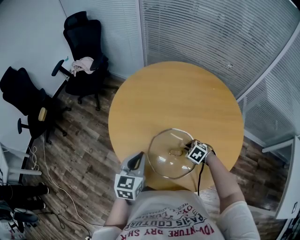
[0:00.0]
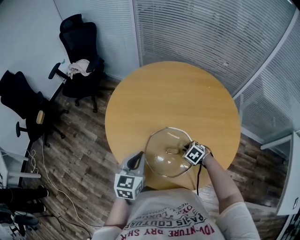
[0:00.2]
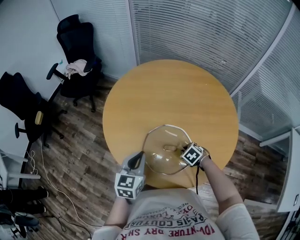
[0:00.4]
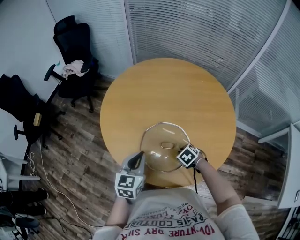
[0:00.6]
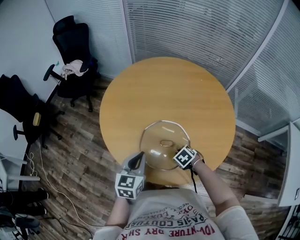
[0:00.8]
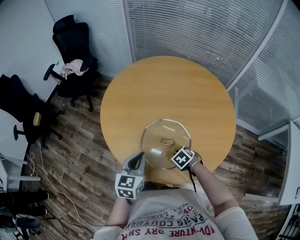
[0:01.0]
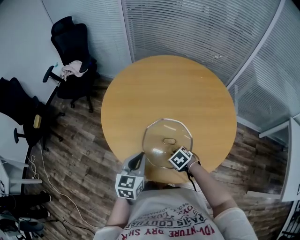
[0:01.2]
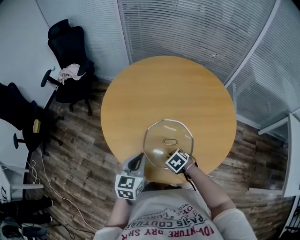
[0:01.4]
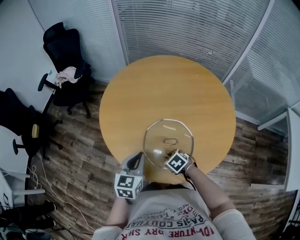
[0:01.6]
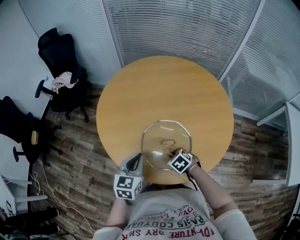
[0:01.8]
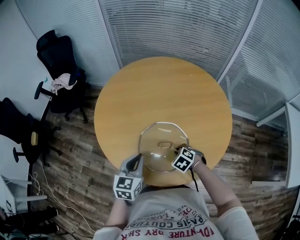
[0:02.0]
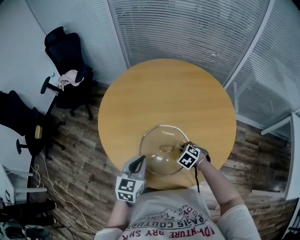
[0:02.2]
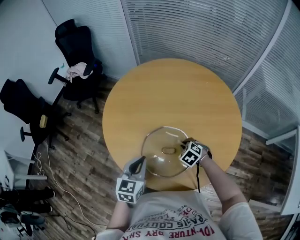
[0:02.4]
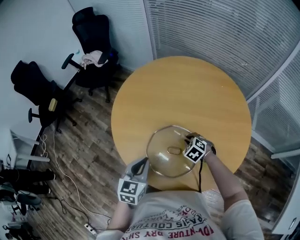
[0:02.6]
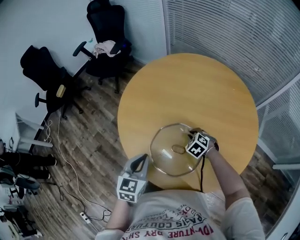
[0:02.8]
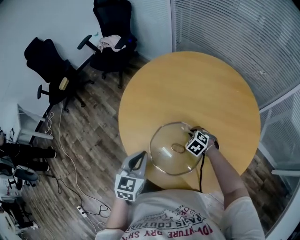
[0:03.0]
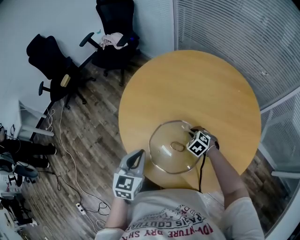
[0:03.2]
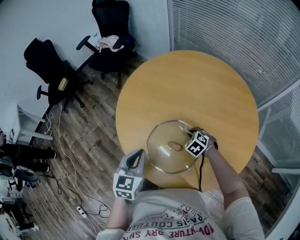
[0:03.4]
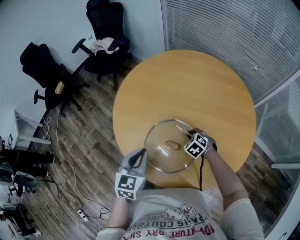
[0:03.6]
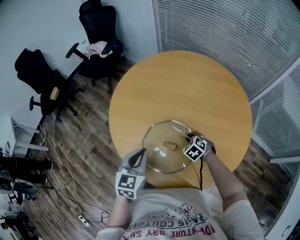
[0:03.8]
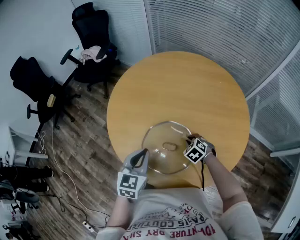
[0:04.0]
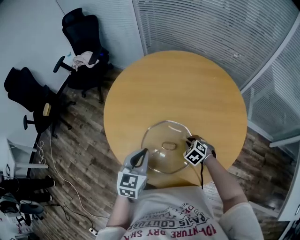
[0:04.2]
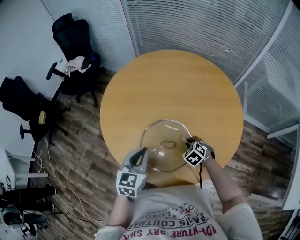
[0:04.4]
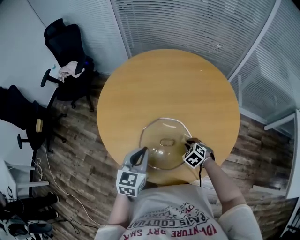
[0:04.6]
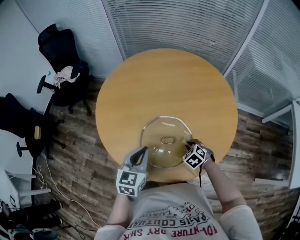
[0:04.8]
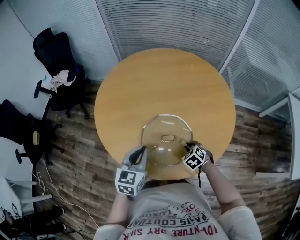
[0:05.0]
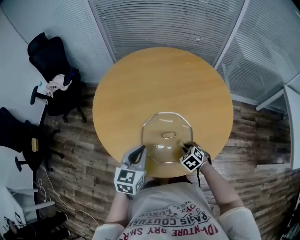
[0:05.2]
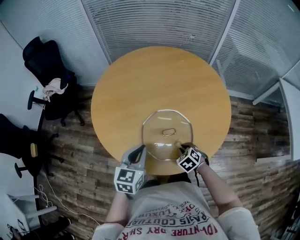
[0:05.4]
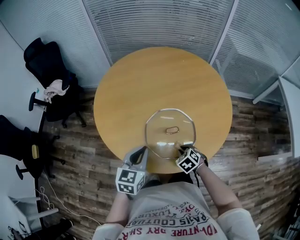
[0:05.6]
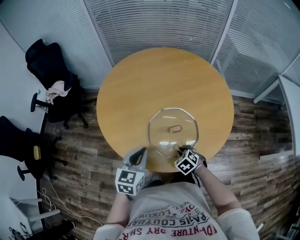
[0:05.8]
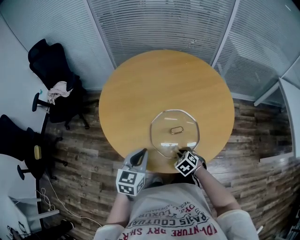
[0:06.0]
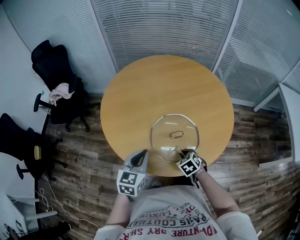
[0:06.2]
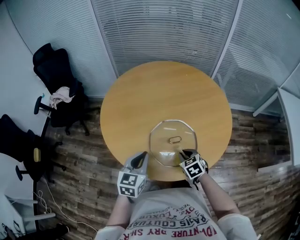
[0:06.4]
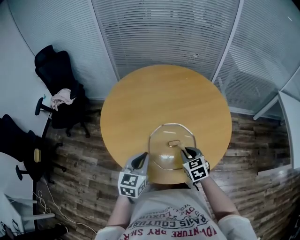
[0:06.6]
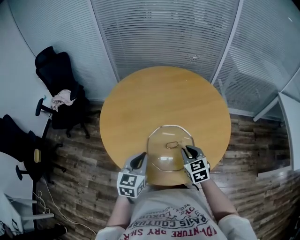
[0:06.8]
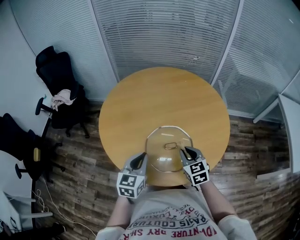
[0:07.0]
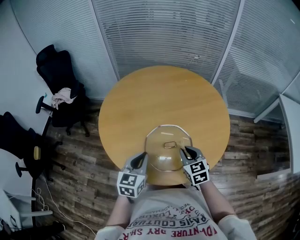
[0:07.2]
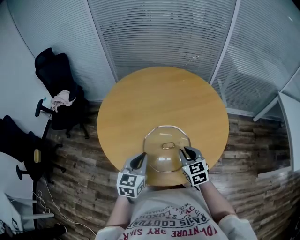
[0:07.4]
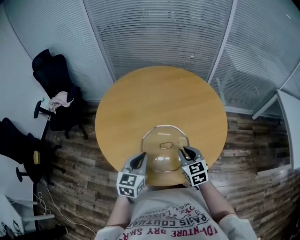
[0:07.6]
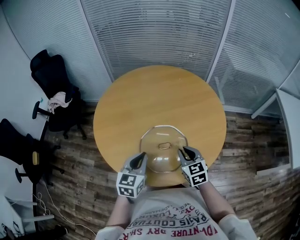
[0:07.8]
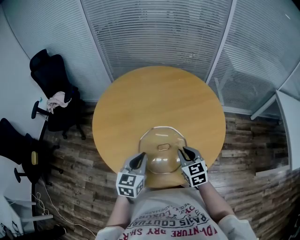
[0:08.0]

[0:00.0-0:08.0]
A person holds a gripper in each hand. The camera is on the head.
0:00.0 to 0:01.6: The right gripper ends up about 15 cm from where it was, and changes its angle by approximately 20 degrees.
0:01.6 to 0:03.2: The right gripper shifts by roughly 20 cm, and turns by about 40 degrees. Meanwhile the left gripper turns by roughly 30 degrees.
0:03.2 to 0:04.8: The left gripper rotates roughly 30 degrees. Meanwhile the right gripper ends up approximately 15 cm from where it was, and rotates approximately 30 degrees.
0:04.8 to 0:06.4: The left gripper shifts about 5 cm to the left. The right gripper heads to the left, upward and backward, covering approximately 15 cm, and rotates approximately 30 degrees.
0:06.4 to 0:08.0: The right gripper shifts about 10 cm upward and to the right, and changes its angle by approximately 20 degrees. Meanwhile the left gripper is displaced to the right by some 5 cm.

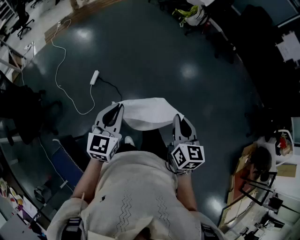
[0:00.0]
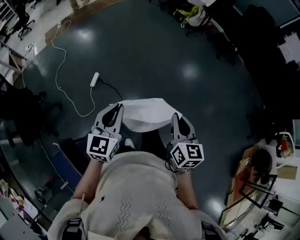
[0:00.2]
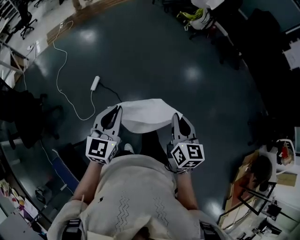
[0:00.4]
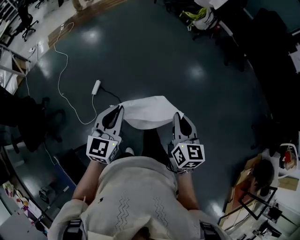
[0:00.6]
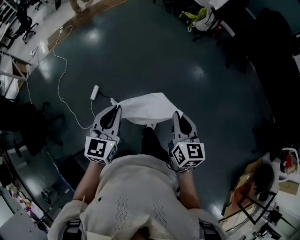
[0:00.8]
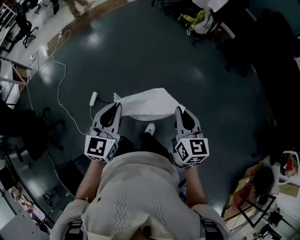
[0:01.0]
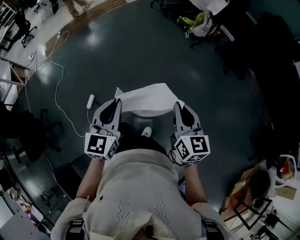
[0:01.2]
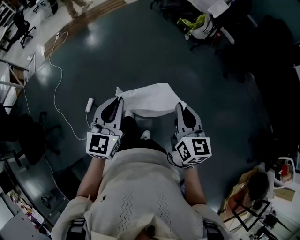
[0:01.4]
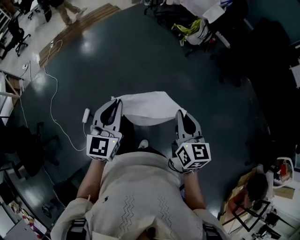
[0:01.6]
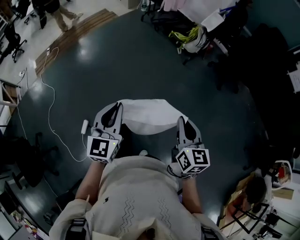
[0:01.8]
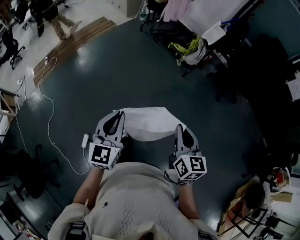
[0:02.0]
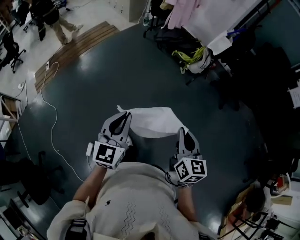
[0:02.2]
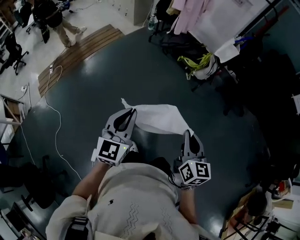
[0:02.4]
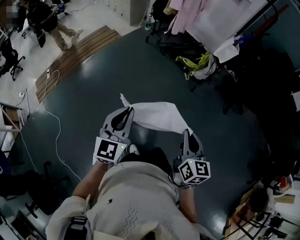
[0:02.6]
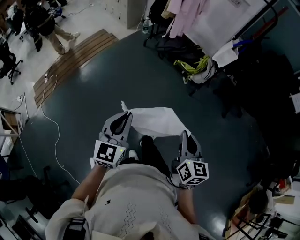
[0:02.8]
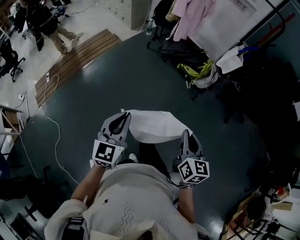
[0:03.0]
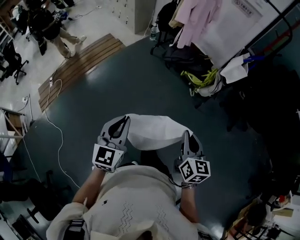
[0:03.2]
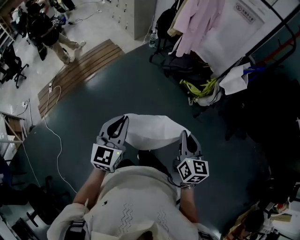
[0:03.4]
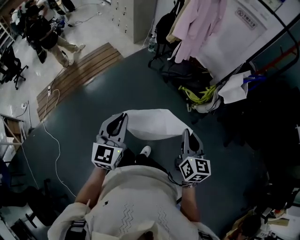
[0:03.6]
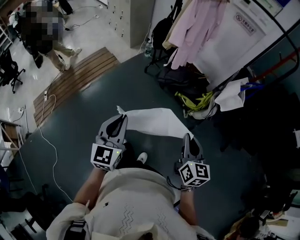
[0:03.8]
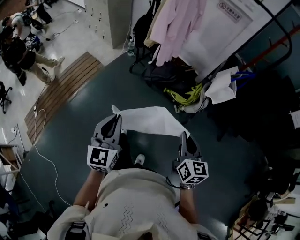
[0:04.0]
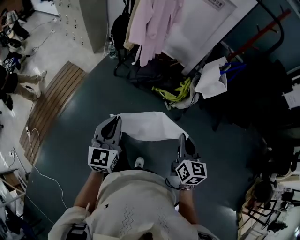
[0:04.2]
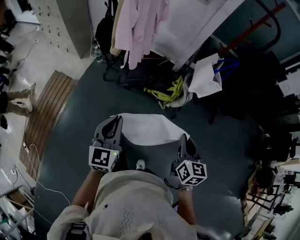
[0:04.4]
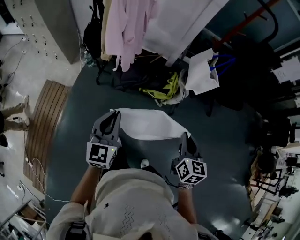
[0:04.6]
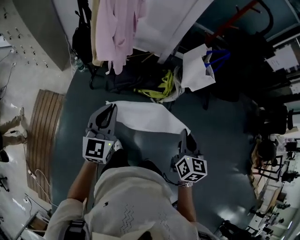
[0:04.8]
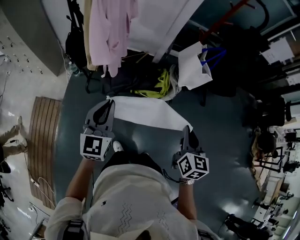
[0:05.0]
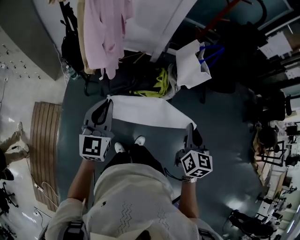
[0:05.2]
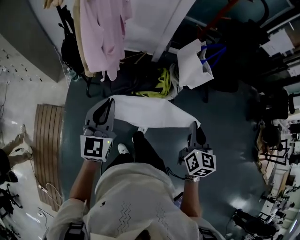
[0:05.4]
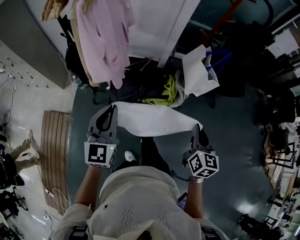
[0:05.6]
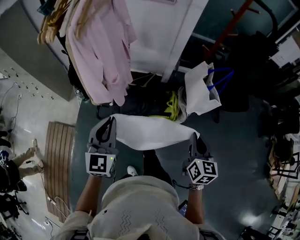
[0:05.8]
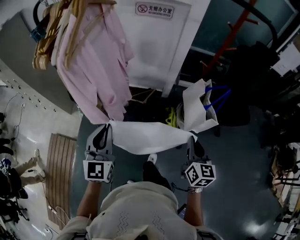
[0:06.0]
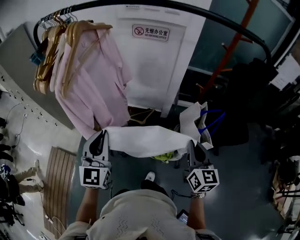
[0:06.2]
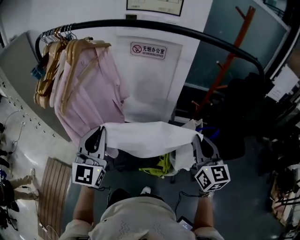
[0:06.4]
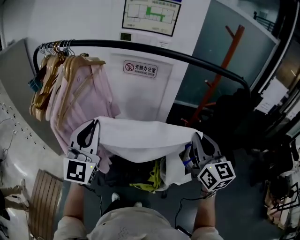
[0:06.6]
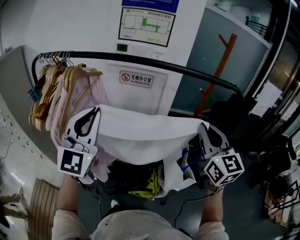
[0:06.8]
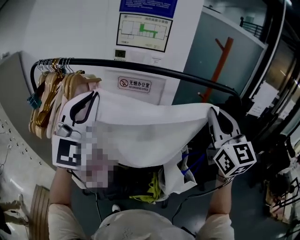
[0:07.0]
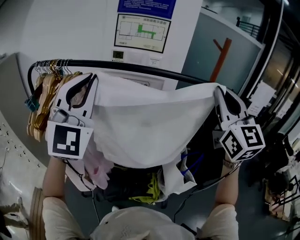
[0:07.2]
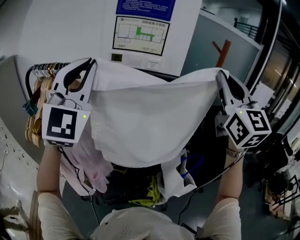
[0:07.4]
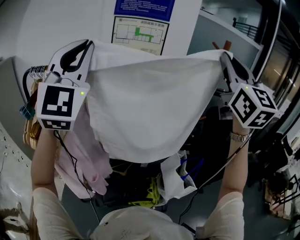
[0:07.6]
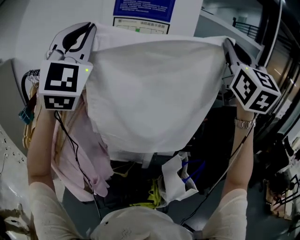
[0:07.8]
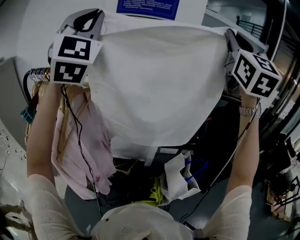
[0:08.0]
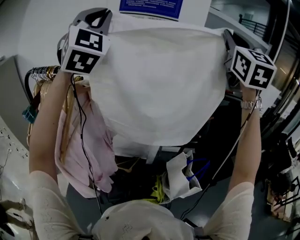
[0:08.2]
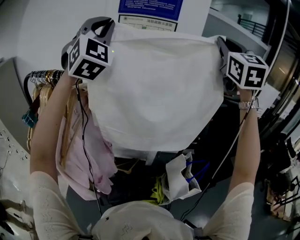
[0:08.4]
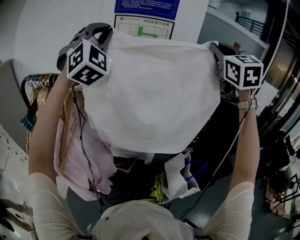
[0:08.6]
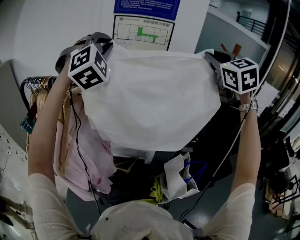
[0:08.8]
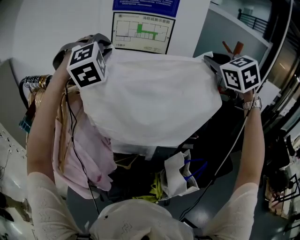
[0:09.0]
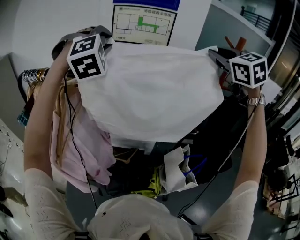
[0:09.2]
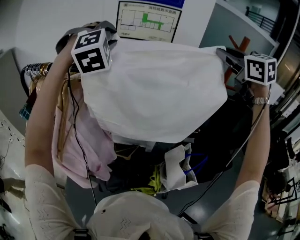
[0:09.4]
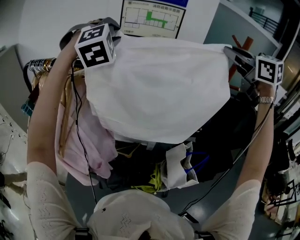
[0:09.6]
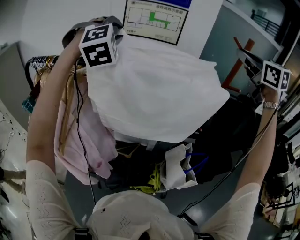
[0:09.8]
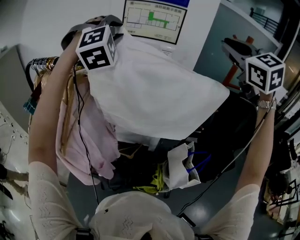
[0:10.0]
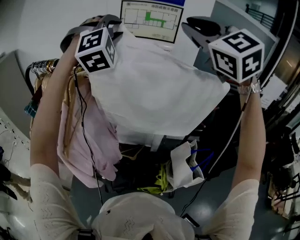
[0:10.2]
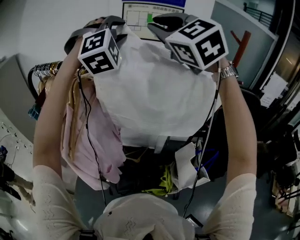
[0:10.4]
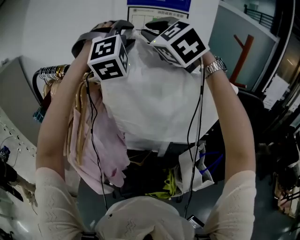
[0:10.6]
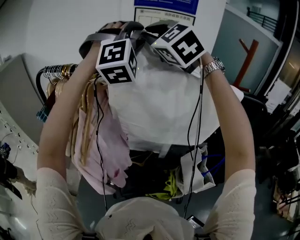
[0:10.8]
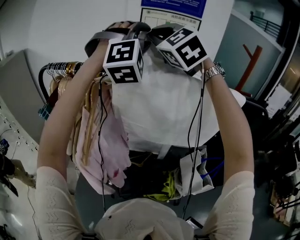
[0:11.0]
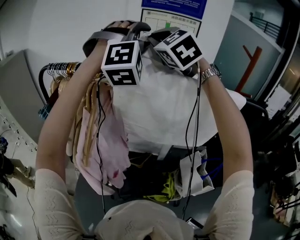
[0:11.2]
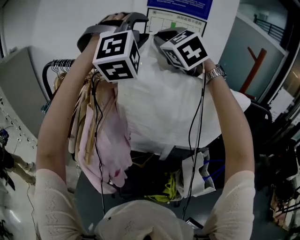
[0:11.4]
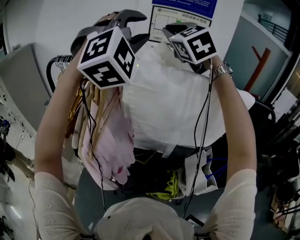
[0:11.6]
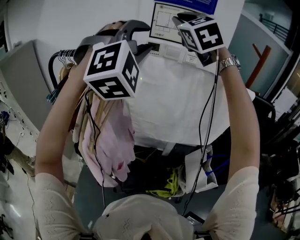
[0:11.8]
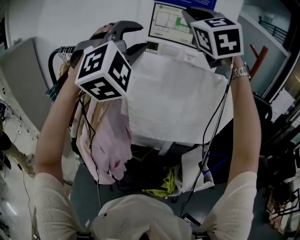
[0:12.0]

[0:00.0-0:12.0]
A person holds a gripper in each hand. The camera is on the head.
0:00.0 to 0:01.6: Both grippers are carried forward, about 60 cm.
0:01.6 to 0:03.0: The pair of grippers is taken forward and to the left, about 50 cm.
0:03.0 to 0:04.4: The pair of grippers is taken roughly 50 cm. The right gripper turns by some 20 degrees.
0:04.4 to 0:06.0: Both grippers travel together forward, some 35 cm.
0:06.0 to 0:07.6: The grippers both shift upward and forward by approximately 60 cm. The left gripper tilts its fingers some 30 degrees upward; the right gripper tilts its fingers approximately 40 degrees upward.
0:07.6 to 0:09.0: Both grippers move forward, approximately 20 cm. The right gripper angles its fingers downward, by approximately 40 degrees, while the left gripper tips its fingers downward by about 40 degrees.
0:09.0 to 0:10.4: The right gripper goes some 25 cm to the left, and turns by about 30 degrees; the left gripper opens.
0:10.4 to 0:12.0: The right gripper reaches approximately 10 cm forward, then returns, while the left gripper shifts roughly 10 cm backward and to the left.

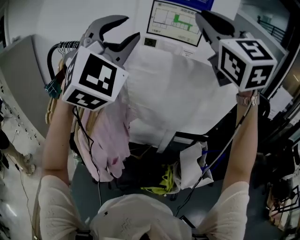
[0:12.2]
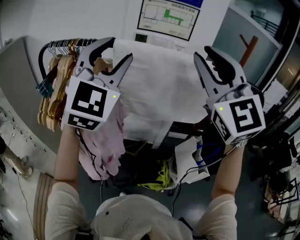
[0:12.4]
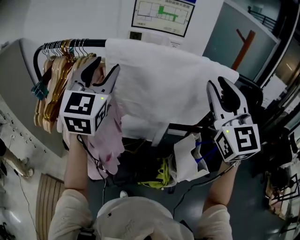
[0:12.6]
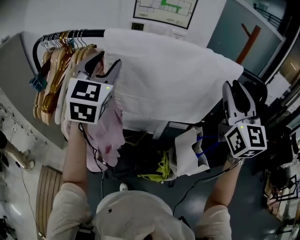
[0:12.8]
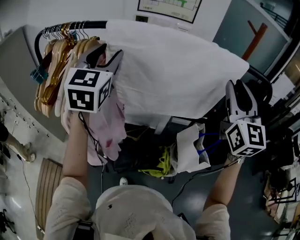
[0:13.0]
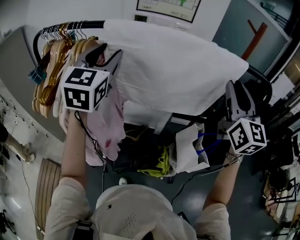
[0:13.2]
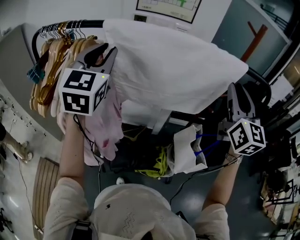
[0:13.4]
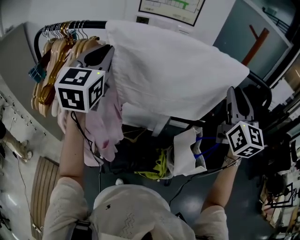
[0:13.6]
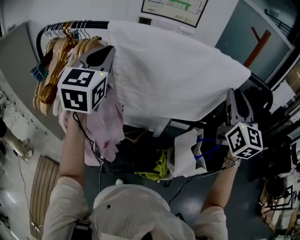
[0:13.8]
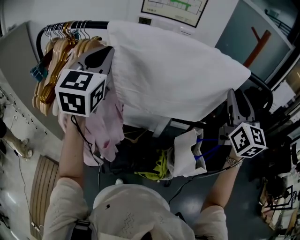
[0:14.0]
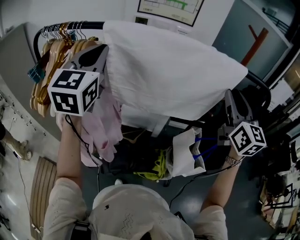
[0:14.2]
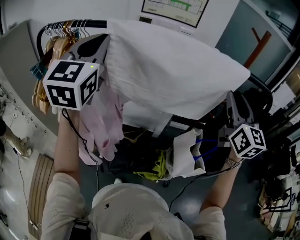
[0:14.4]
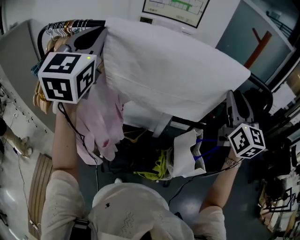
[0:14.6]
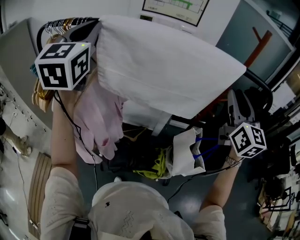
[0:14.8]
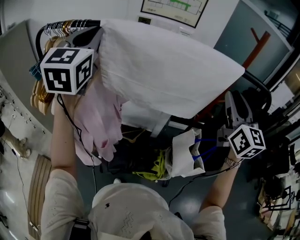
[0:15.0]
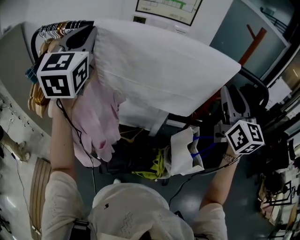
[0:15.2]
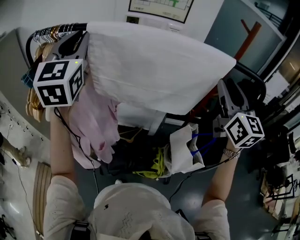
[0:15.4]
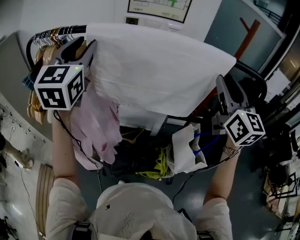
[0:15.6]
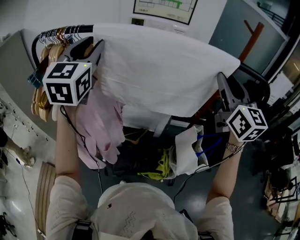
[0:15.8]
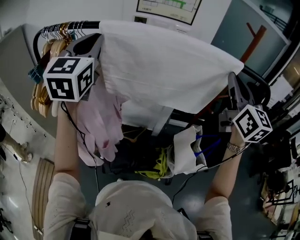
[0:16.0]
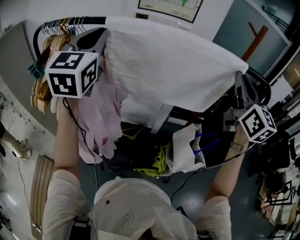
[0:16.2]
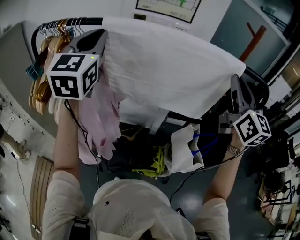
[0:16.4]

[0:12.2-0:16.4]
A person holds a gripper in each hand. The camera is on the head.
0:12.2 to 0:13.6: The right gripper is displaced to the right and downward by roughly 30 cm, and swivels roughly 40 degrees. Meanwhile the left gripper goes some 15 cm downward, rolls counterclockwise, seen from behind, by roughly 40 degrees, and closes up.
0:13.6 to 0:15.0: The left gripper shifts approximately 5 cm upward.
0:15.0 to 0:16.4: The right gripper closes, while the left gripper opens, then closes once more.
